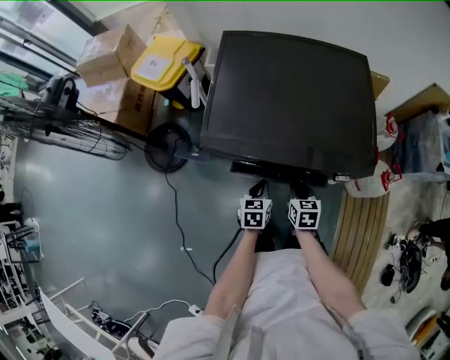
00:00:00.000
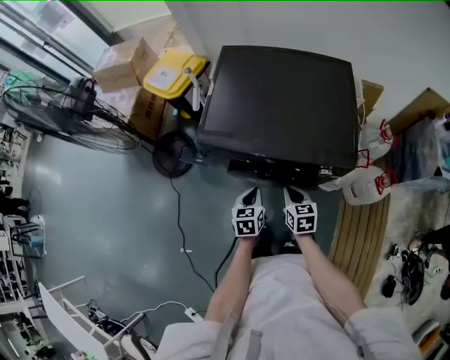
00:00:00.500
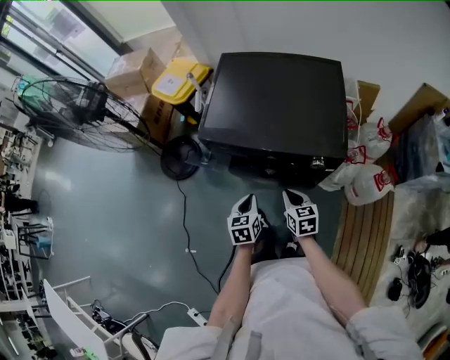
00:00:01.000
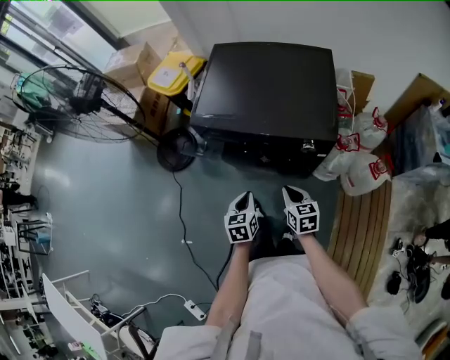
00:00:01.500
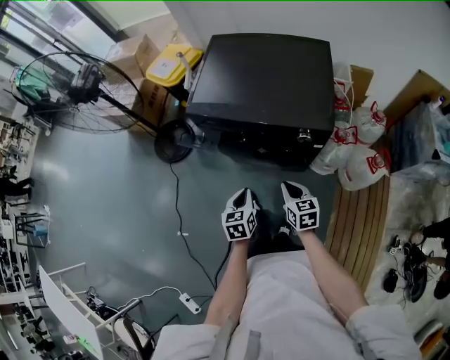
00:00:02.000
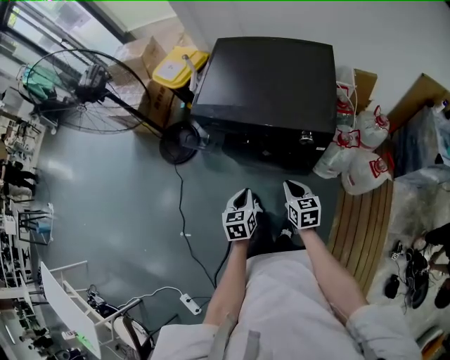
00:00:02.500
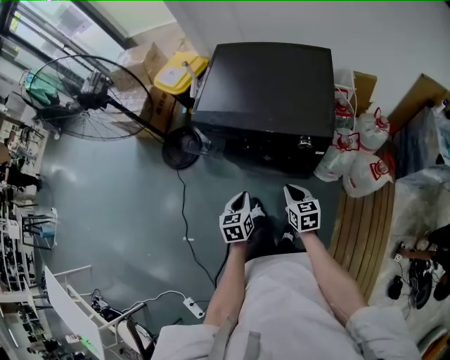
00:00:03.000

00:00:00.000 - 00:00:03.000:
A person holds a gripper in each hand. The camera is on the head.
00:00:00.000 - 00:00:01.500: Both grippers move backward and upward, approximately 20 cm.
00:00:01.500 - 00:00:03.000: The grippers move only a little.

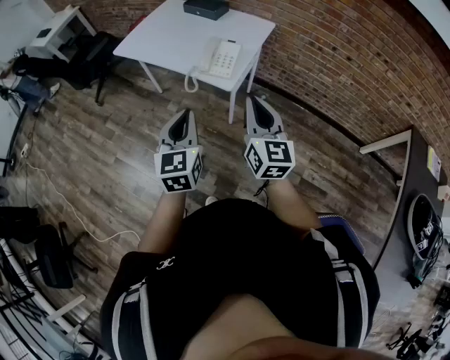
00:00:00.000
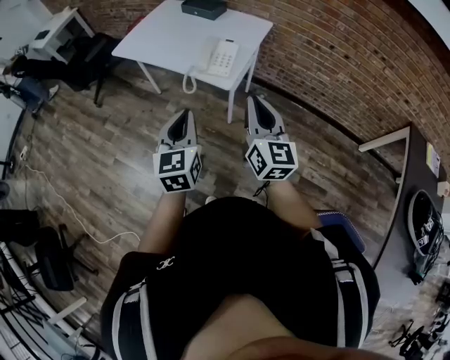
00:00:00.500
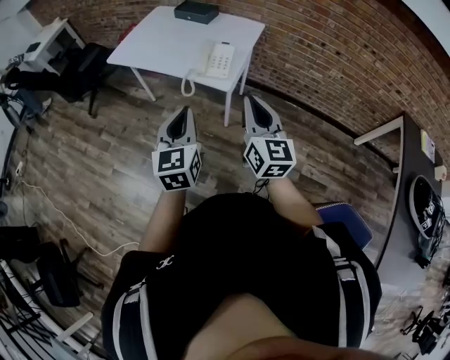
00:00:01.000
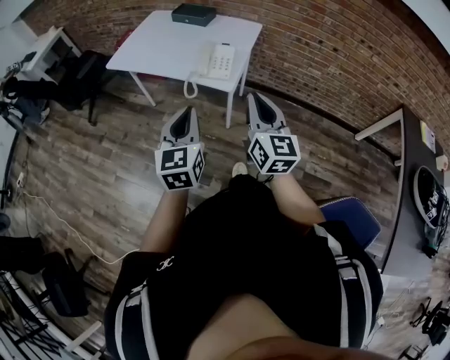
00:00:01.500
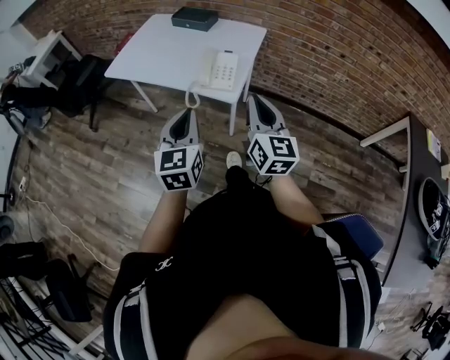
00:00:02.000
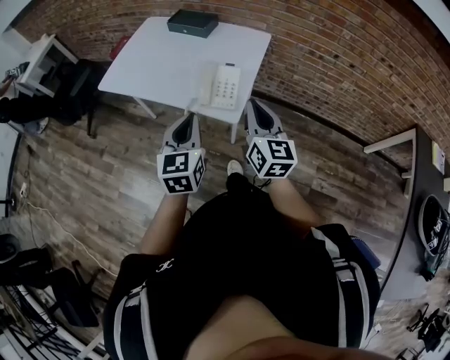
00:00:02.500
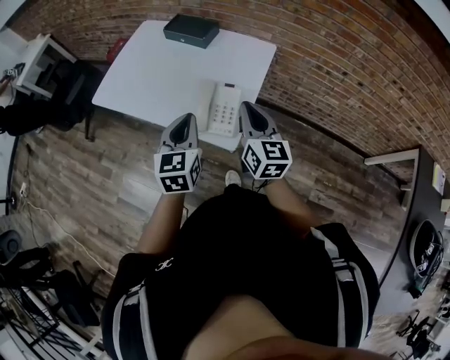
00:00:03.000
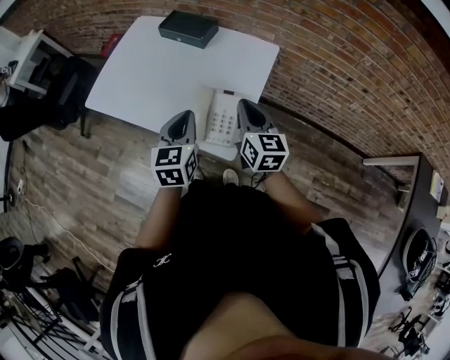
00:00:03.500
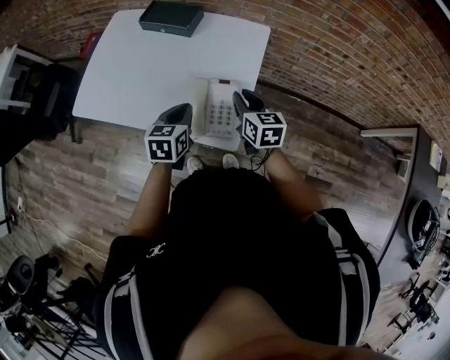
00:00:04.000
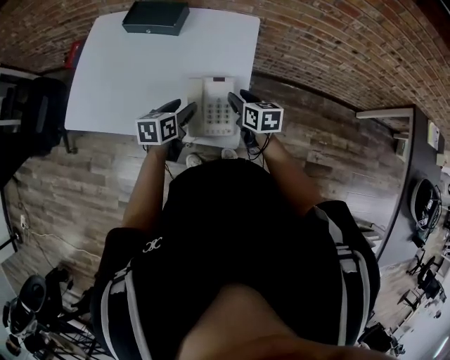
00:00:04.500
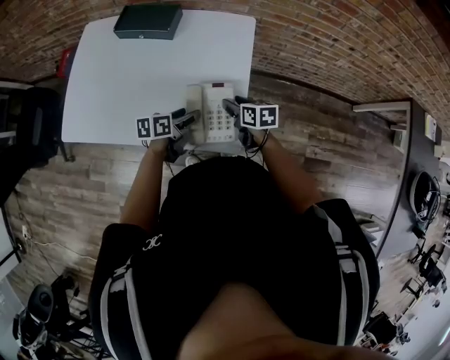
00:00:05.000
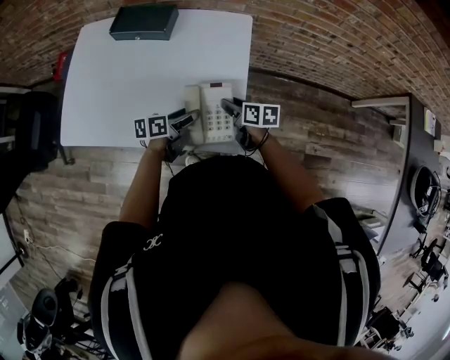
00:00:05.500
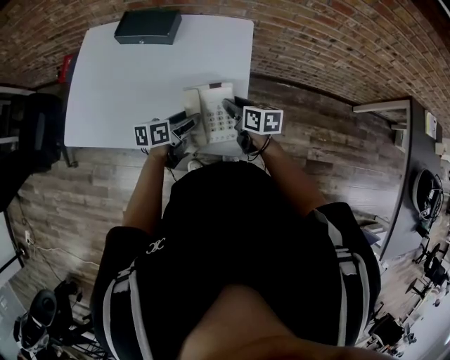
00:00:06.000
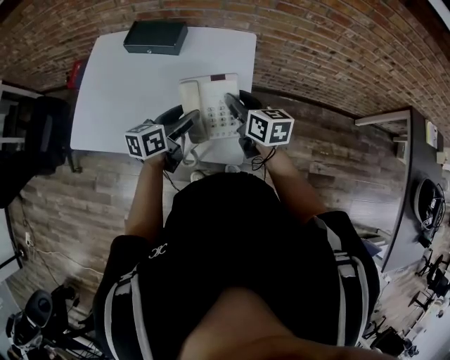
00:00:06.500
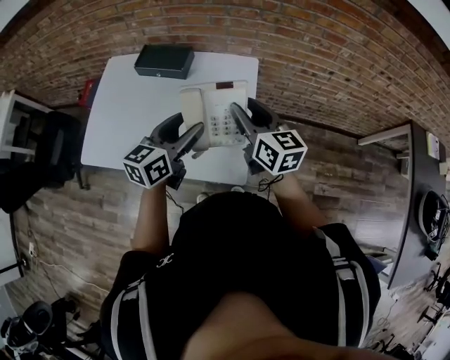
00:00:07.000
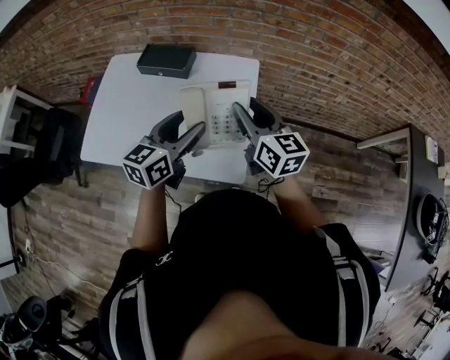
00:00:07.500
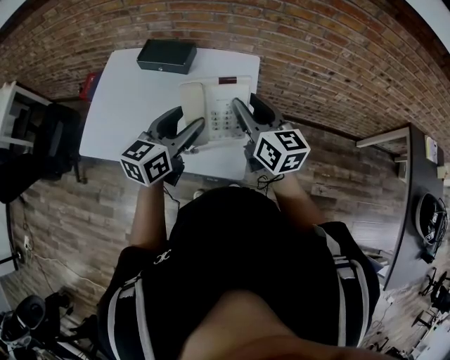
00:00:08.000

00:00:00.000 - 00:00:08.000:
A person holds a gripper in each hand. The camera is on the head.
00:00:00.000 - 00:00:02.000: Both grippers travel together forward, about 5 cm.
00:00:02.000 - 00:00:04.000: The two grippers go approximately 40 cm forward and downward. The left gripper swivels approximately 30 degrees. The right gripper swivels approximately 30 degrees.
00:00:04.000 - 00:00:06.000: The grippers both shift downward by approximately 10 cm. The right gripper turns by roughly 20 degrees, and opens up. The left gripper turns by approximately 40 degrees, and opens.
00:00:06.000 - 00:00:08.000: The two grippers go roughly 25 cm upward. The right gripper turns by approximately 40 degrees. Meanwhile the left gripper rotates some 40 degrees.

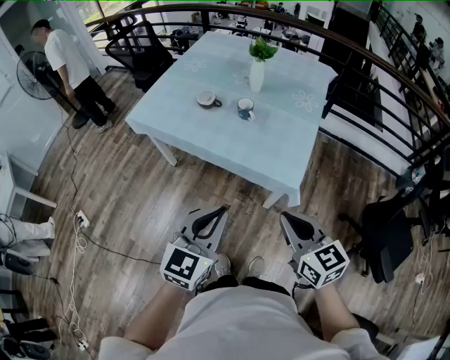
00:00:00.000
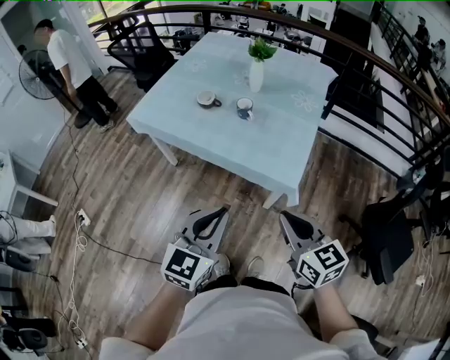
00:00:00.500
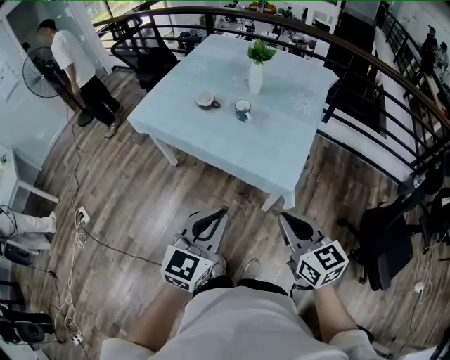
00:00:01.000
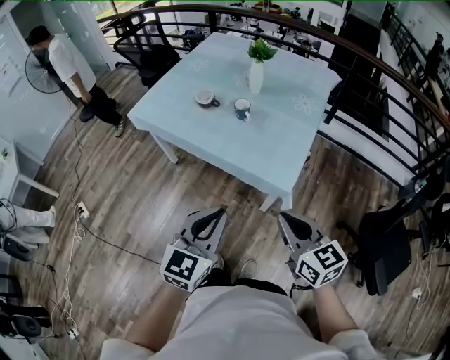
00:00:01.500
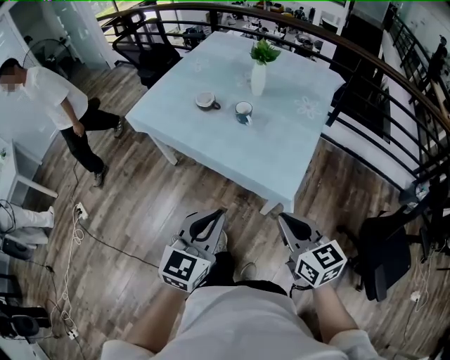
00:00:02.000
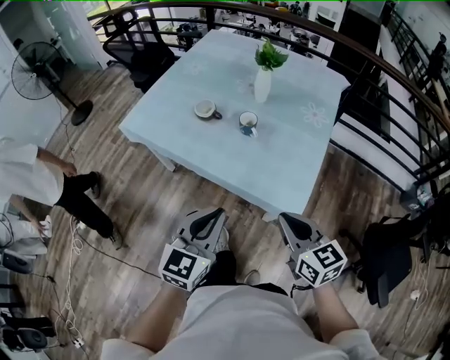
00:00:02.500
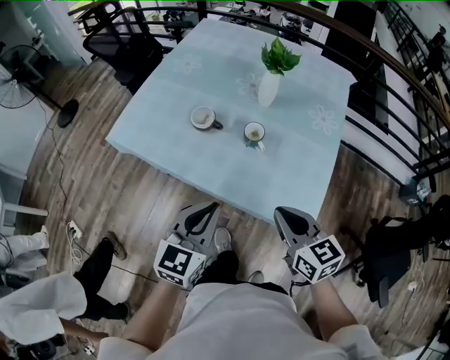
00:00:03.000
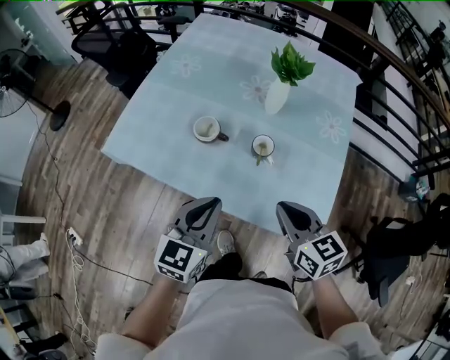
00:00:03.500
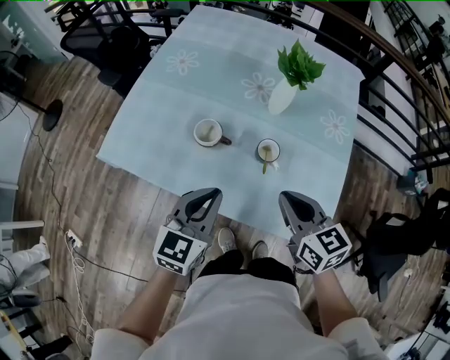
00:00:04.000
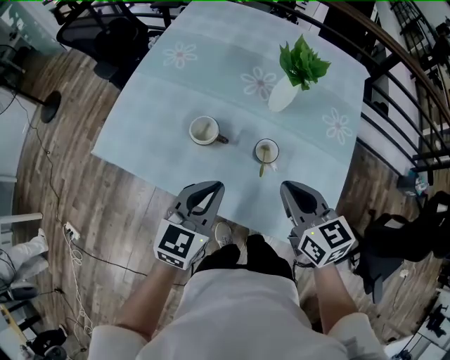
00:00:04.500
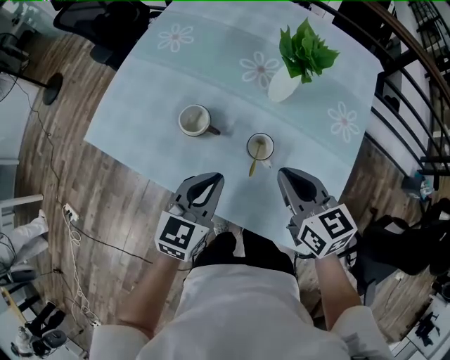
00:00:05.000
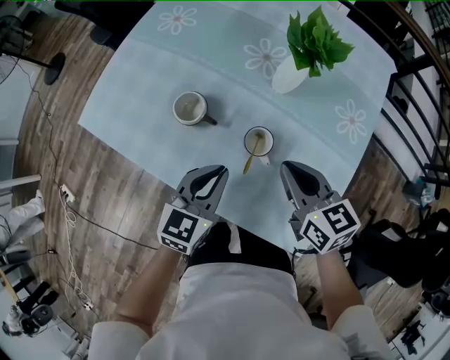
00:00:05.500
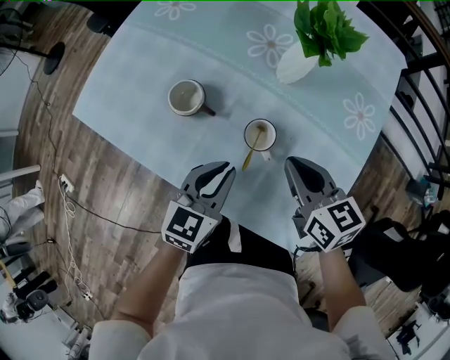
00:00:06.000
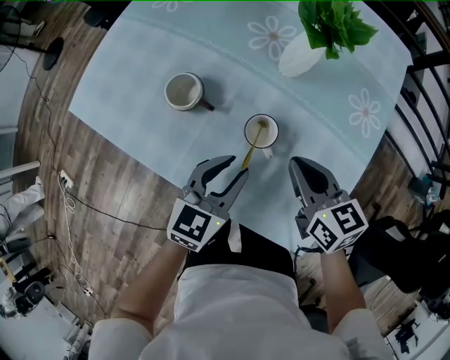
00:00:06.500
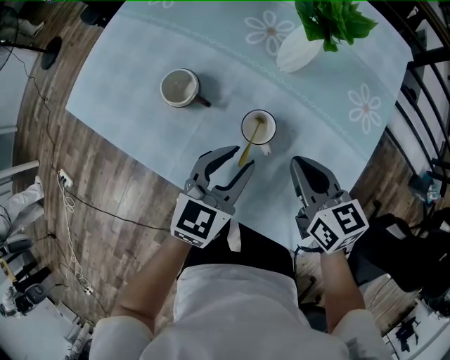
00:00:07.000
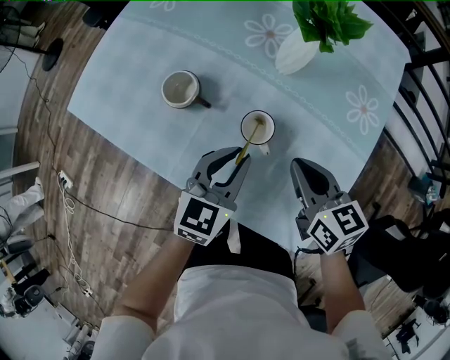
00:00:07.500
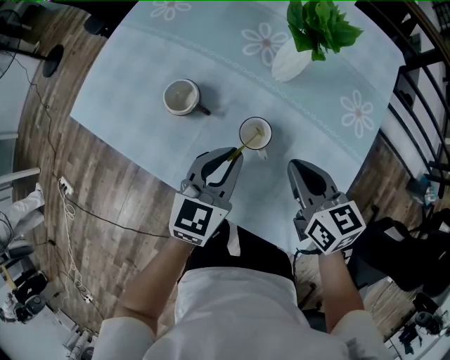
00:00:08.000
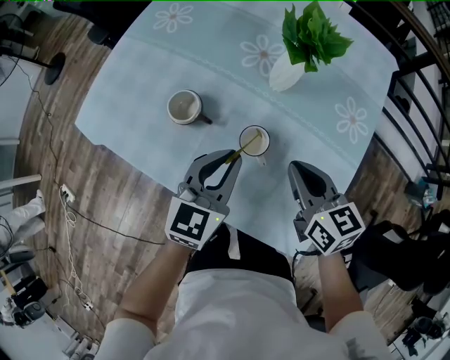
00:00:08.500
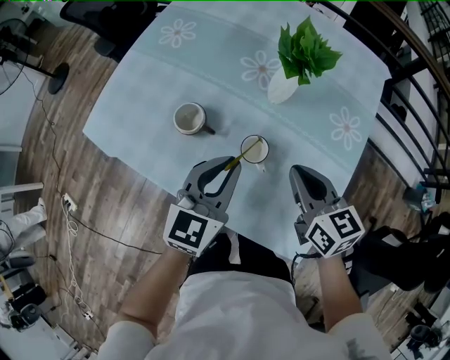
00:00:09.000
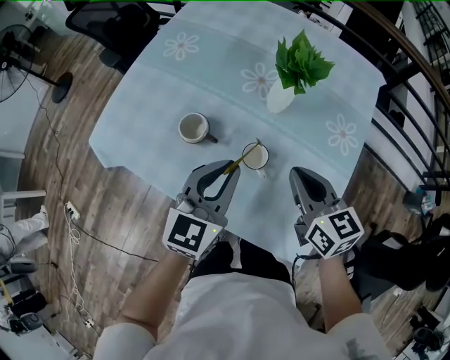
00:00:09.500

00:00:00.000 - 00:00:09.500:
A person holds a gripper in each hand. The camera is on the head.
00:00:00.000 - 00:00:02.000: The right gripper shifts by about 5 cm. The left gripper changes place by some 5 cm.
00:00:02.000 - 00:00:04.000: The two grippers go about 35 cm forward.
00:00:04.000 - 00:00:05.500: The right gripper heads forward, downward and to the right, covering approximately 15 cm. The left gripper heads downward, to the right and forward, covering some 15 cm.
00:00:05.500 - 00:00:07.500: The right gripper heads downward, covering some 5 cm. The left gripper heads to the right, covering about 5 cm.
00:00:07.500 - 00:00:09.500: Both grippers travel together upward, approximately 10 cm.

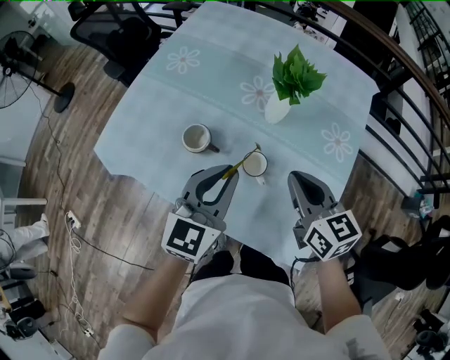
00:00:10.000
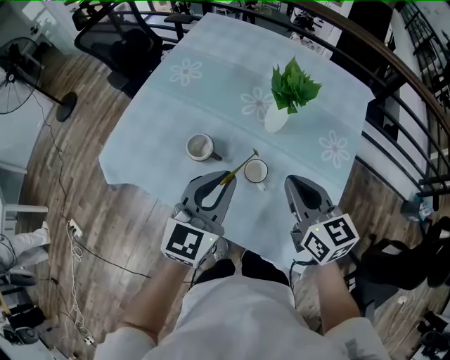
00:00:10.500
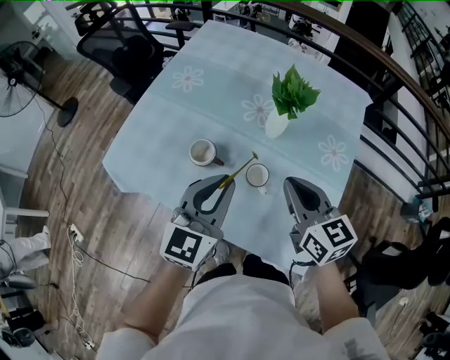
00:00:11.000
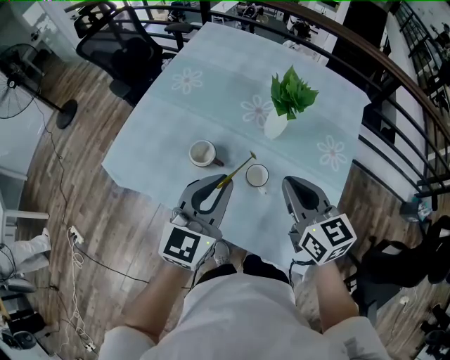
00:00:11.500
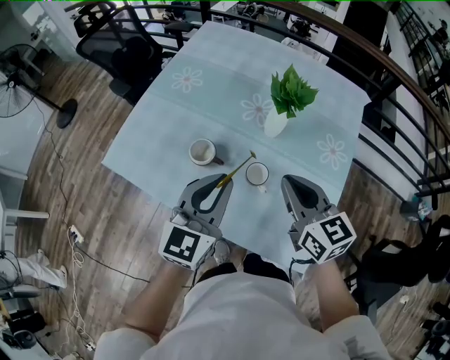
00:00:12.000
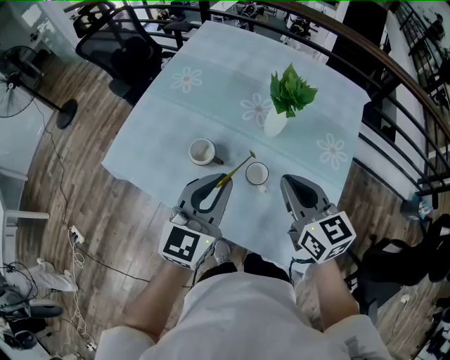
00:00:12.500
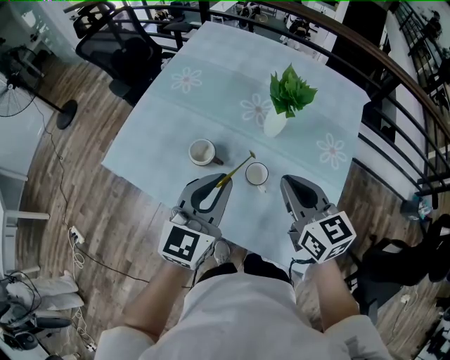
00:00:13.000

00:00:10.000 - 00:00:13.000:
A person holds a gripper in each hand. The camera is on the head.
00:00:10.000 - 00:00:11.500: The right gripper goes roughly 5 cm upward. The left gripper changes place by about 5 cm.
00:00:11.500 - 00:00:13.000: Neither gripper changes place.

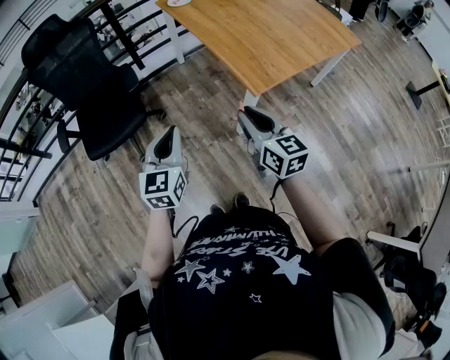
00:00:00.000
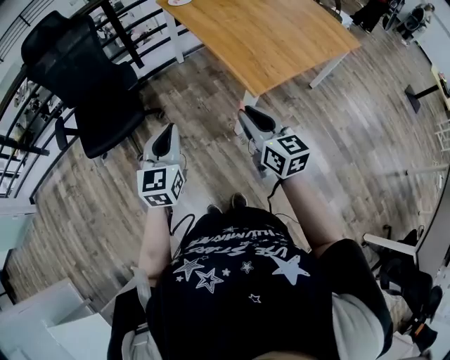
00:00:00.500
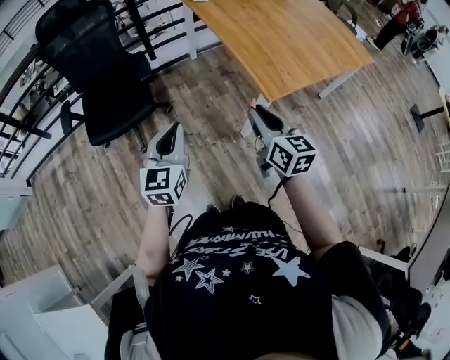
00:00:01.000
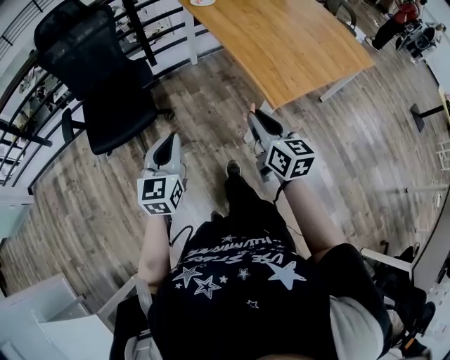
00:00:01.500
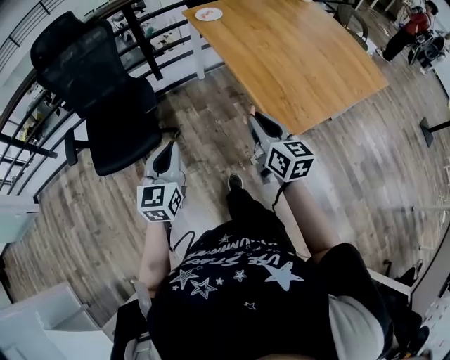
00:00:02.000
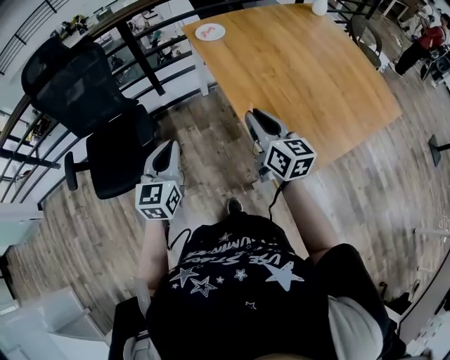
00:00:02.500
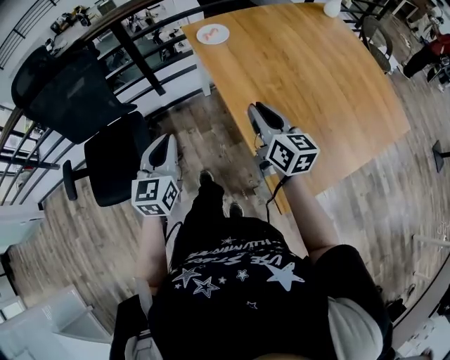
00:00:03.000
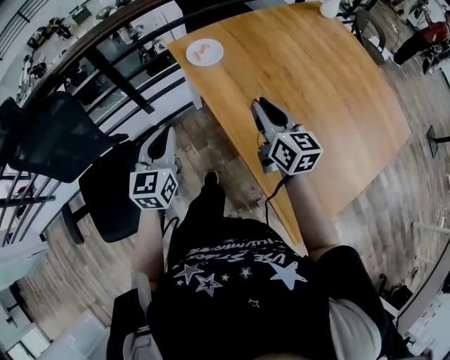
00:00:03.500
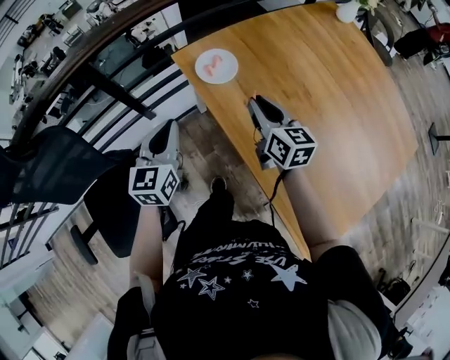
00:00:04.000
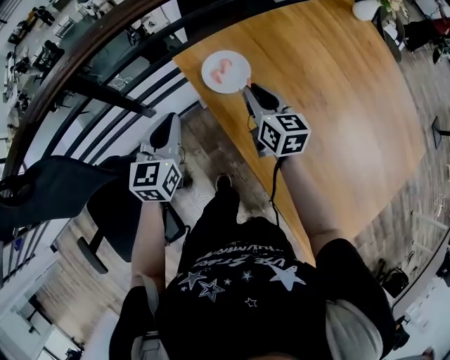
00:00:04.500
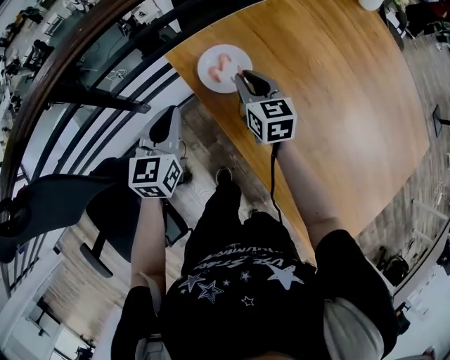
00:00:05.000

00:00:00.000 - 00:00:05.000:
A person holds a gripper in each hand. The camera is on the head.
00:00:00.000 - 00:00:02.500: The two grippers go some 35 cm forward.
00:00:02.500 - 00:00:05.000: The pair of grippers is taken forward, roughly 60 cm. The right gripper changes its angle by about 30 degrees.